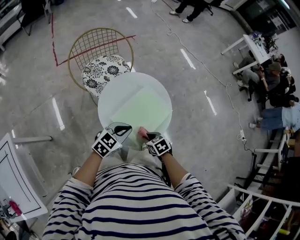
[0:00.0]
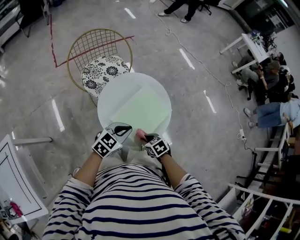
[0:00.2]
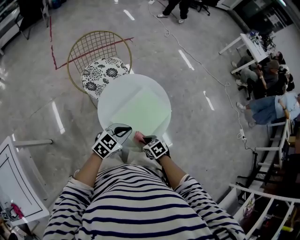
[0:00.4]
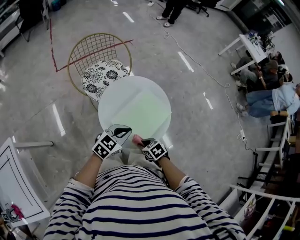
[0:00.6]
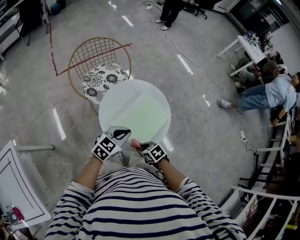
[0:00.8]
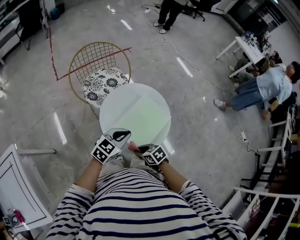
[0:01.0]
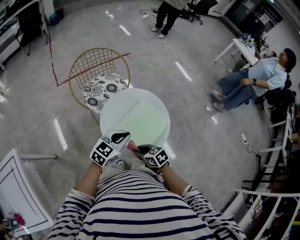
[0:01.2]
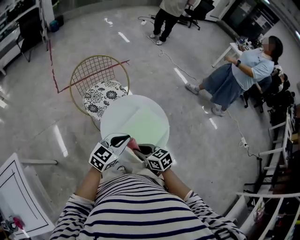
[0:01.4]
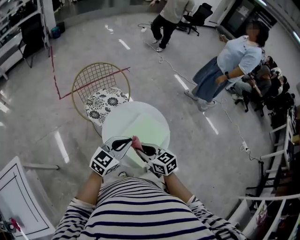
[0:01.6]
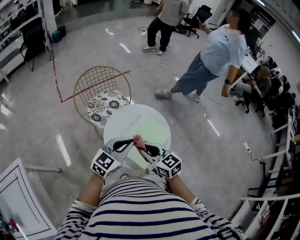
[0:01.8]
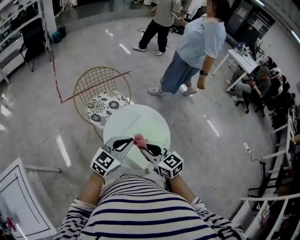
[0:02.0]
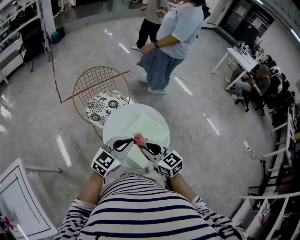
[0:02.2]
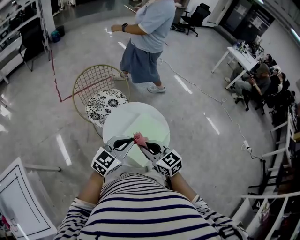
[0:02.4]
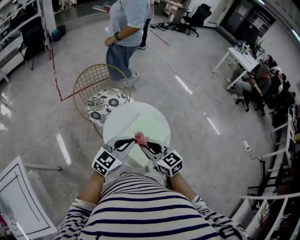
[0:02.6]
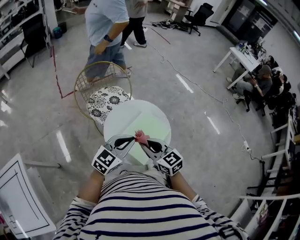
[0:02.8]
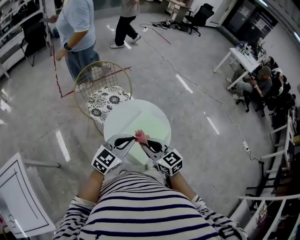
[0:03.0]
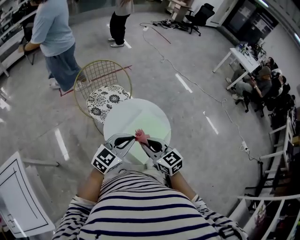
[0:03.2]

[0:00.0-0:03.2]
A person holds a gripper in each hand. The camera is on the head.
0:00.0 to 0:01.6: The left gripper shifts roughly 10 cm upward; the right gripper shifts roughly 20 cm upward, and points its fingers some 40 degrees further upward.
0:01.6 to 0:03.2: The grippers move only a little.

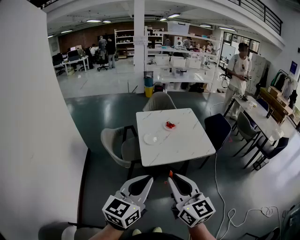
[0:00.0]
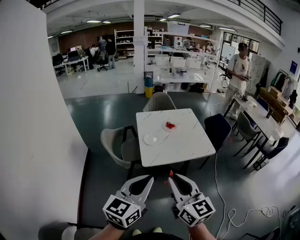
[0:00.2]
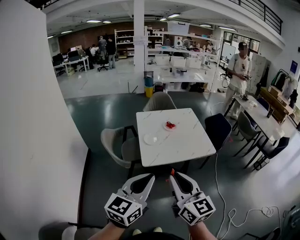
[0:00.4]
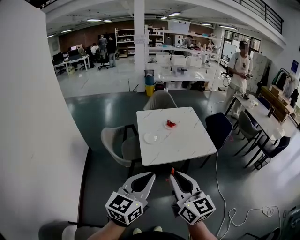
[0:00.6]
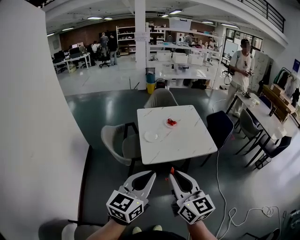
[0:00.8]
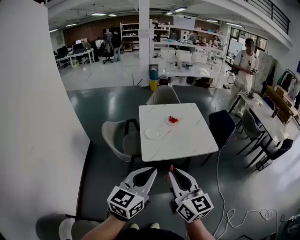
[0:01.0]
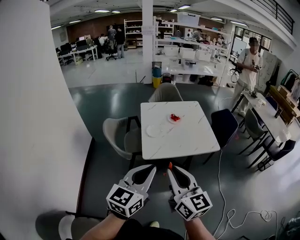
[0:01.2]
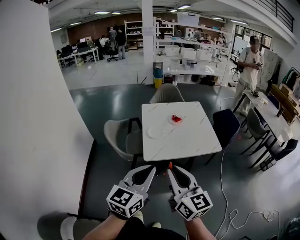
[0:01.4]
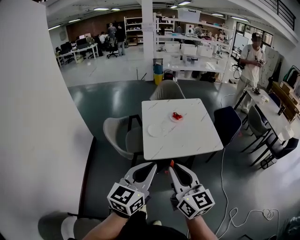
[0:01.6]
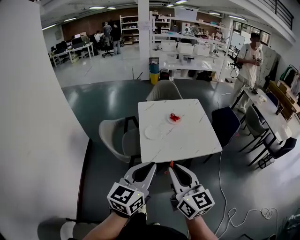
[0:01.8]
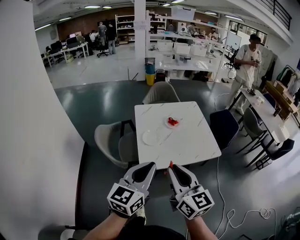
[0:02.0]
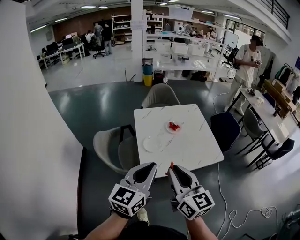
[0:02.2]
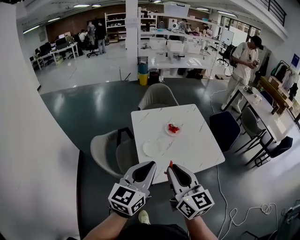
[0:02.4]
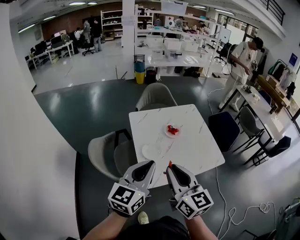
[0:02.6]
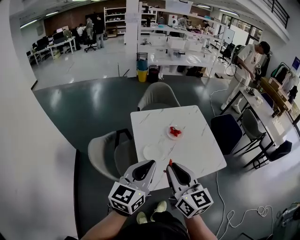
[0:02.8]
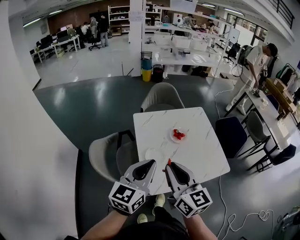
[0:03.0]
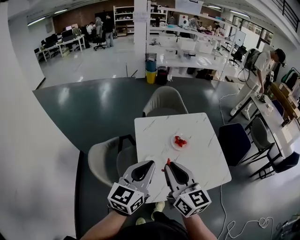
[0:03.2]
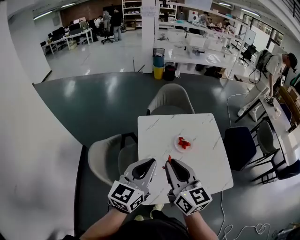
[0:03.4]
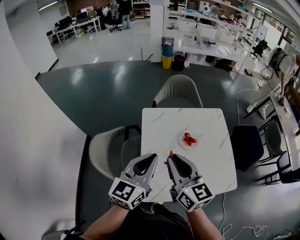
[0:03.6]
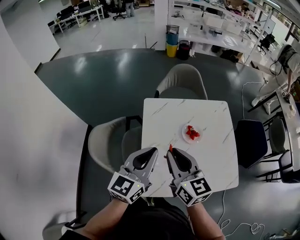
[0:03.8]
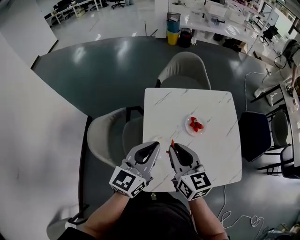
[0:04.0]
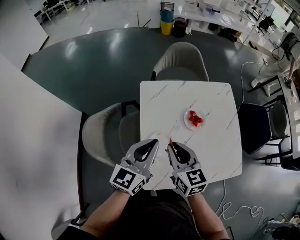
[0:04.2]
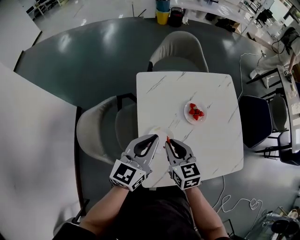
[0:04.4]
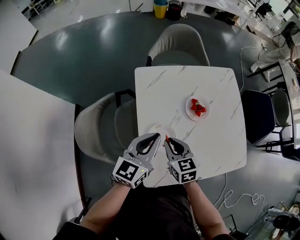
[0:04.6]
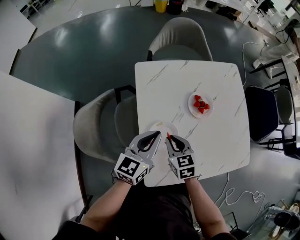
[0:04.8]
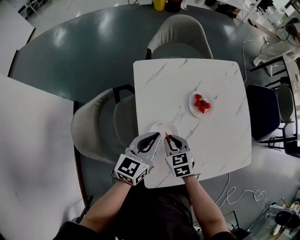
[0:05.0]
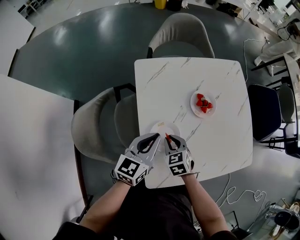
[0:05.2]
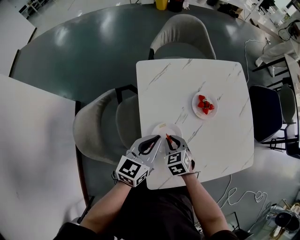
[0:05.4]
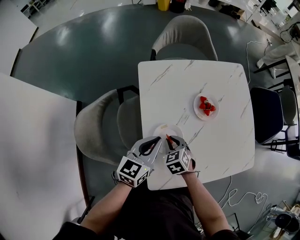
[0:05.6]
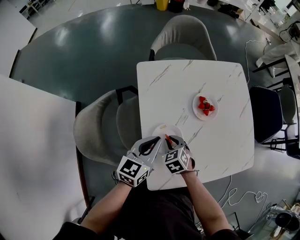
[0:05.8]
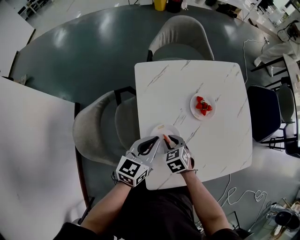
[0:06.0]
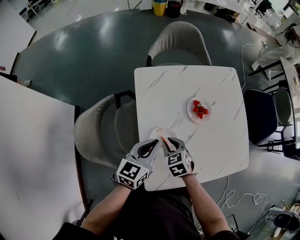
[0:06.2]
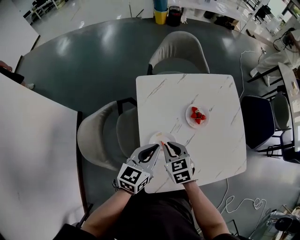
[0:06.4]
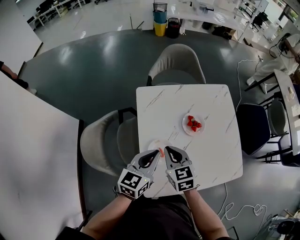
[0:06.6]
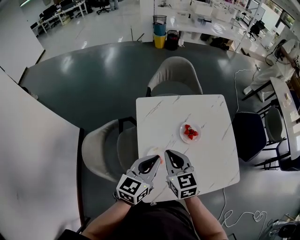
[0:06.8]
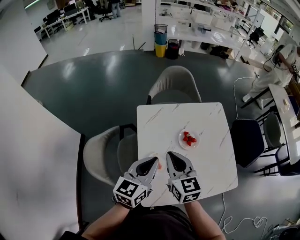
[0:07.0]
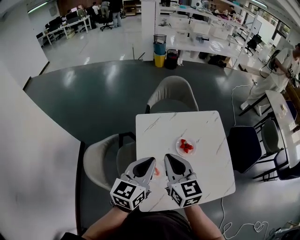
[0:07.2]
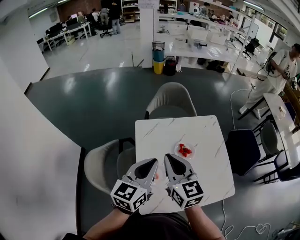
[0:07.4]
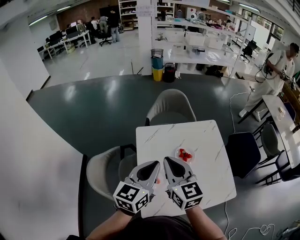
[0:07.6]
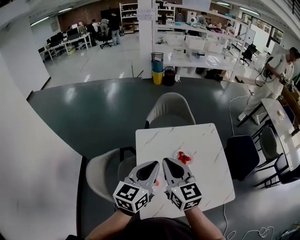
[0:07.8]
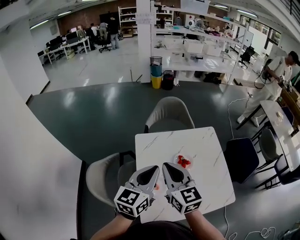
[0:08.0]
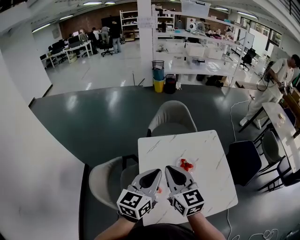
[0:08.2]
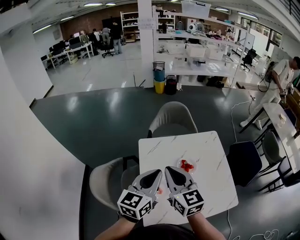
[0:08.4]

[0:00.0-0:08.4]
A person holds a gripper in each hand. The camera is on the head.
0:00.0 to 0:01.4: Both grippers travel together forward, some 5 cm.
0:01.4 to 0:02.8: Both grippers move forward, roughly 30 cm.
0:02.8 to 0:04.2: The two grippers go roughly 25 cm forward and downward. The right gripper swivels some 20 degrees.
0:04.2 to 0:05.6: The right gripper moves downward, approximately 25 cm, and tips its fingers downward by roughly 40 degrees. Meanwhile the left gripper shifts about 20 cm downward.
0:05.6 to 0:07.0: The right gripper is displaced upward by roughly 30 cm, and angles its fingers upward, by about 40 degrees, while the left gripper moves upward, some 20 cm.
0:07.0 to 0:08.4: Both grippers move upward, roughly 10 cm.

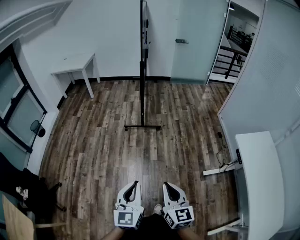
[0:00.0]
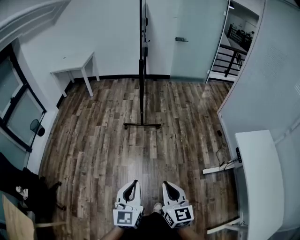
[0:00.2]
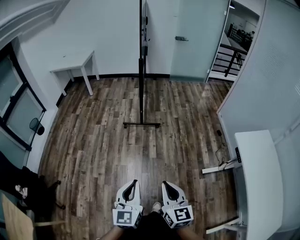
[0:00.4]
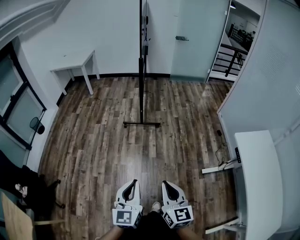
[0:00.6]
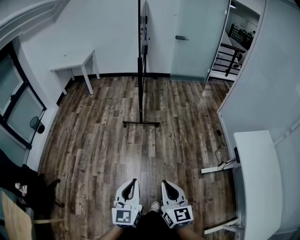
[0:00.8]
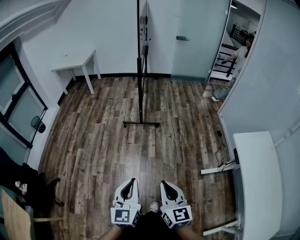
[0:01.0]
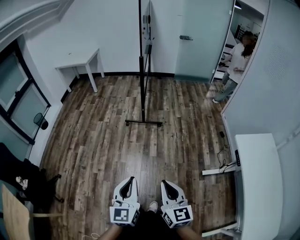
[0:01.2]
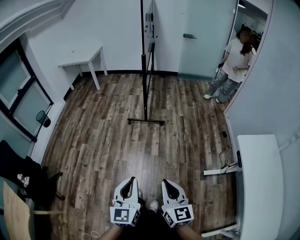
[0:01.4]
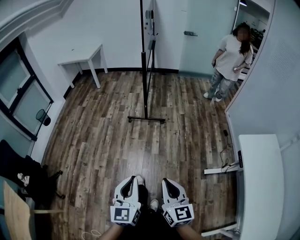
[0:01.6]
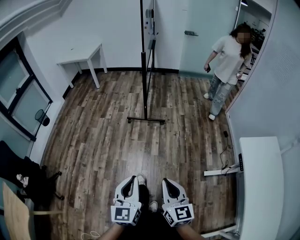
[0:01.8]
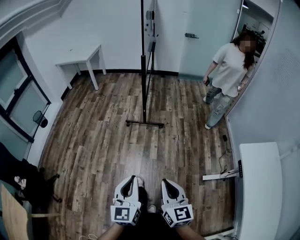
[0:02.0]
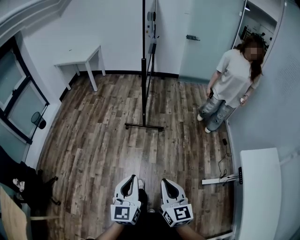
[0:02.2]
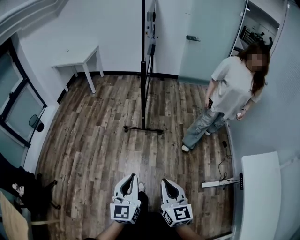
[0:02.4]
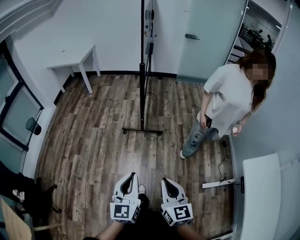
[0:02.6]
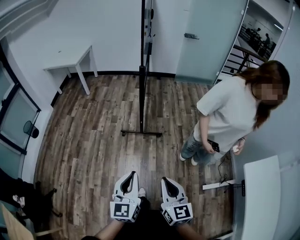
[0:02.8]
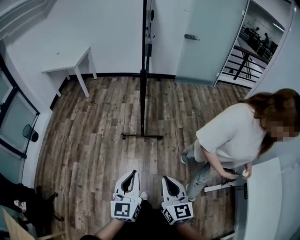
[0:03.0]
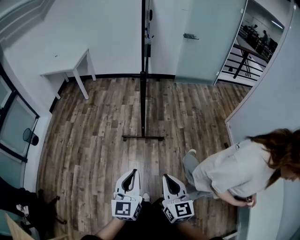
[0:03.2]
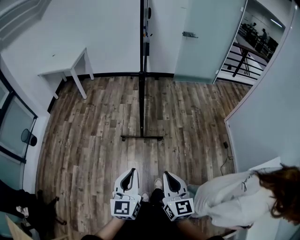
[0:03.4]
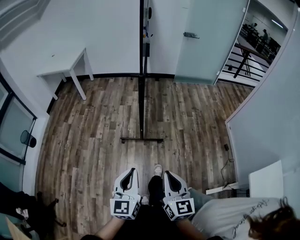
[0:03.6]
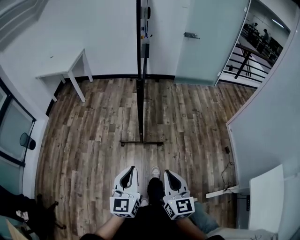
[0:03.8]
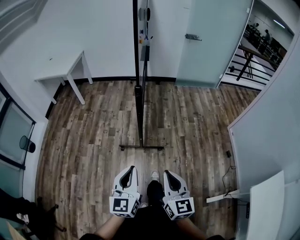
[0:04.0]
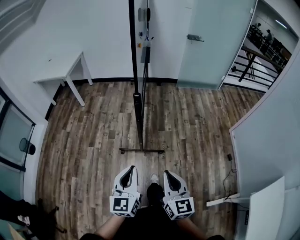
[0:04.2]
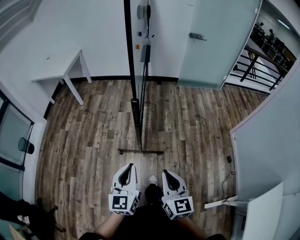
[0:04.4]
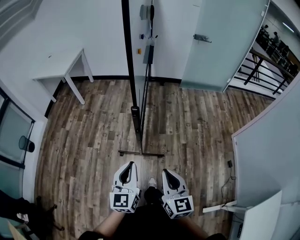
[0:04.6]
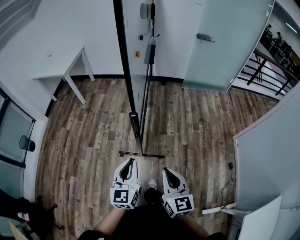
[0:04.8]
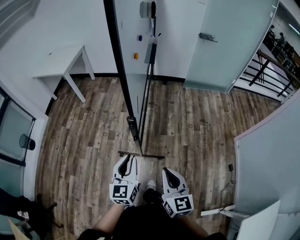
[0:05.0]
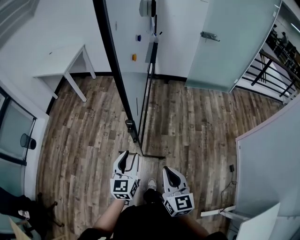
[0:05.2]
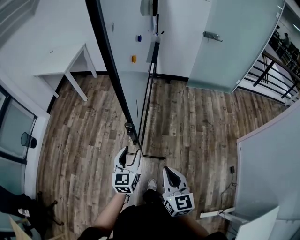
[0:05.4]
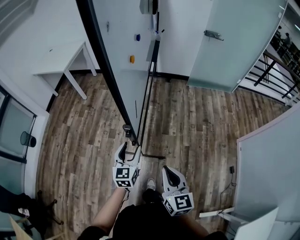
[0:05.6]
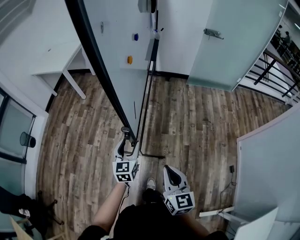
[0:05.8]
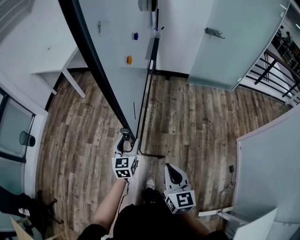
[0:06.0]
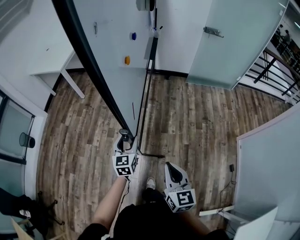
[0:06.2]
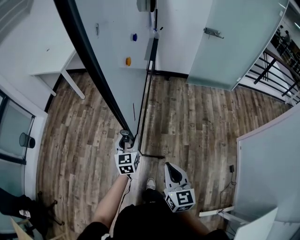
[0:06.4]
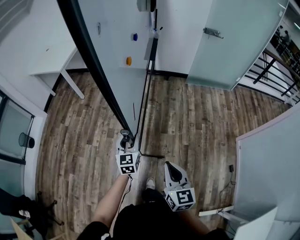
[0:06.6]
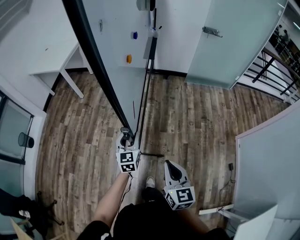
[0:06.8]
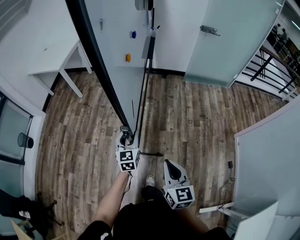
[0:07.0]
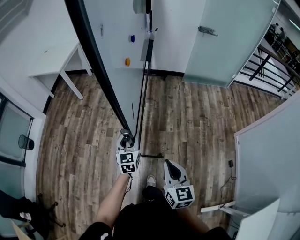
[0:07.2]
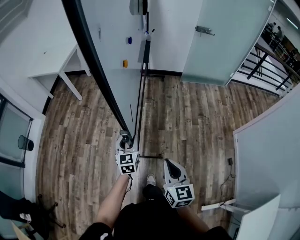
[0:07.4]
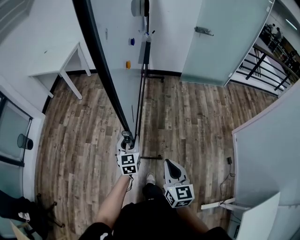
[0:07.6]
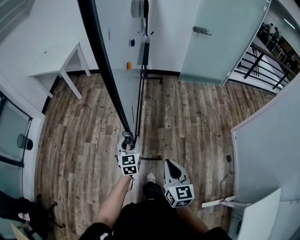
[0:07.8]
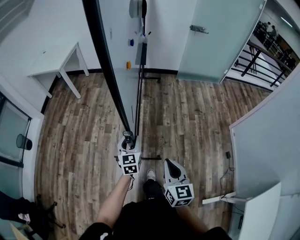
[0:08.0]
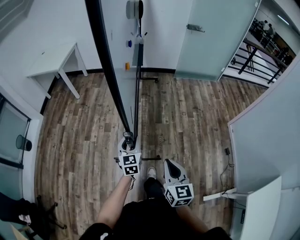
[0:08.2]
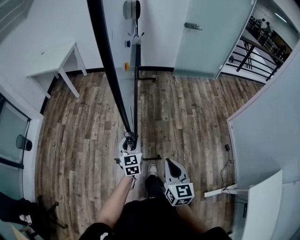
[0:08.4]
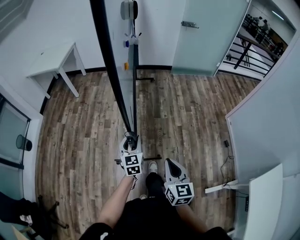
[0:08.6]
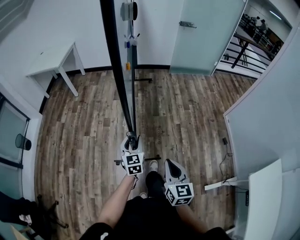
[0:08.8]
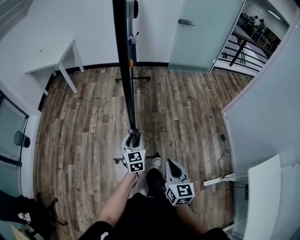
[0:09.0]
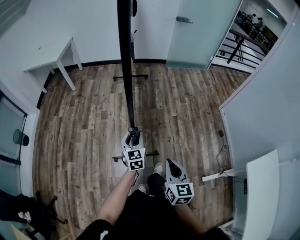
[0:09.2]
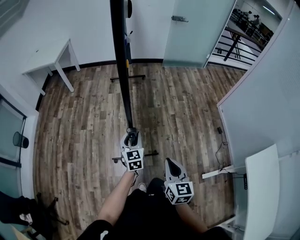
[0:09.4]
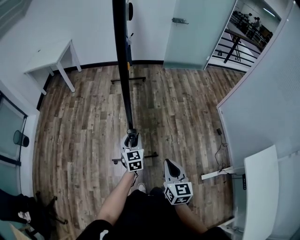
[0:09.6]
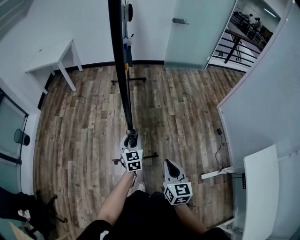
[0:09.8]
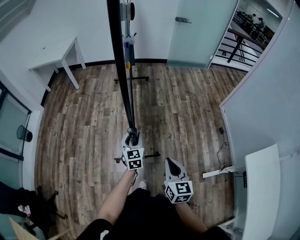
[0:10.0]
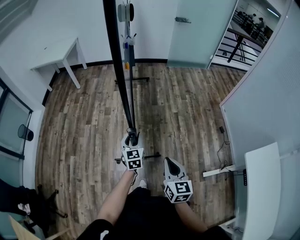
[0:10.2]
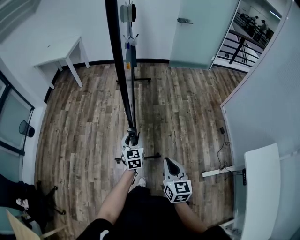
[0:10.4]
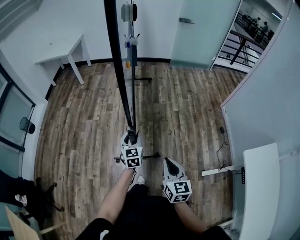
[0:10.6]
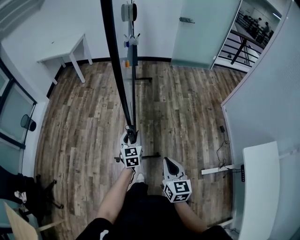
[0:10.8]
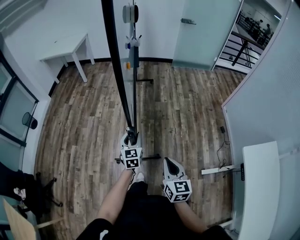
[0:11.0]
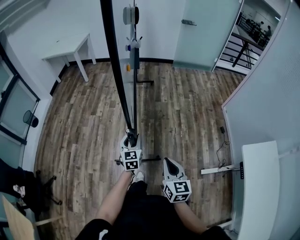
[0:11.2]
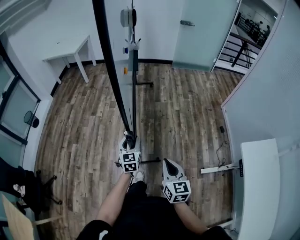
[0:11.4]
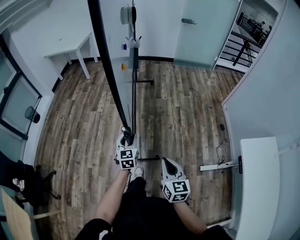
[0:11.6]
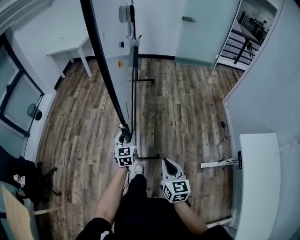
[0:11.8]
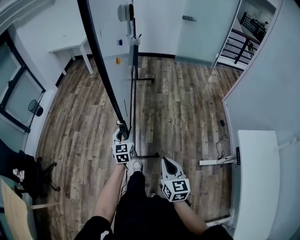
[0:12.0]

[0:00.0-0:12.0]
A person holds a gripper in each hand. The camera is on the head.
0:00.0 to 0:01.6: Both grippers travel together to the right, about 5 cm.
0:01.6 to 0:03.0: Both grippers move forward, approximately 35 cm.
0:03.0 to 0:04.4: The grippers both shift forward by about 35 cm.
0:04.4 to 0:06.0: Both grippers travel together forward, approximately 25 cm. The left gripper opens.
0:06.0 to 0:07.6: The grippers both shift backward by roughly 10 cm.
0:07.6 to 0:09.0: The grippers both shift backward by approximately 25 cm.
0:09.0 to 0:10.4: Both grippers move backward, about 15 cm.
0:10.4 to 0:12.0: Both grippers travel together backward, roughly 25 cm.
